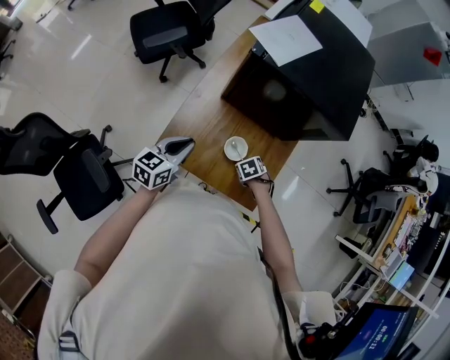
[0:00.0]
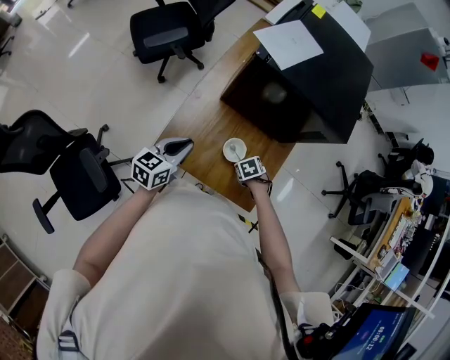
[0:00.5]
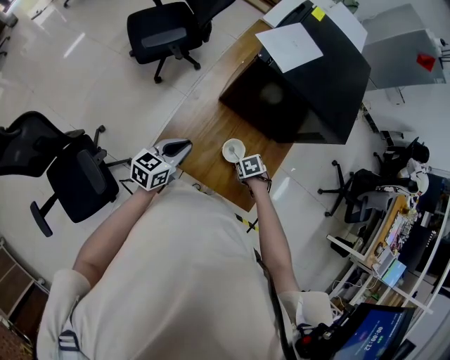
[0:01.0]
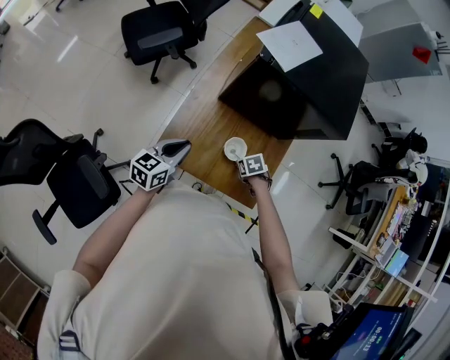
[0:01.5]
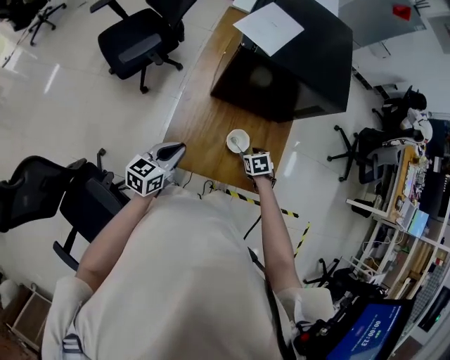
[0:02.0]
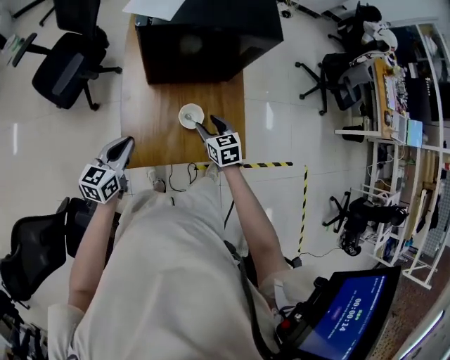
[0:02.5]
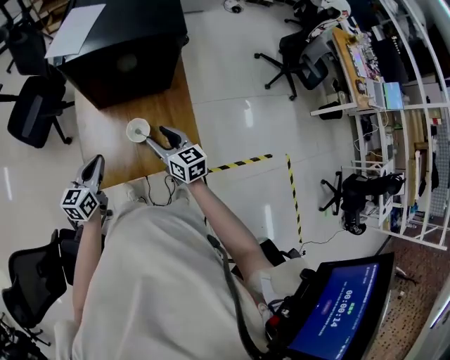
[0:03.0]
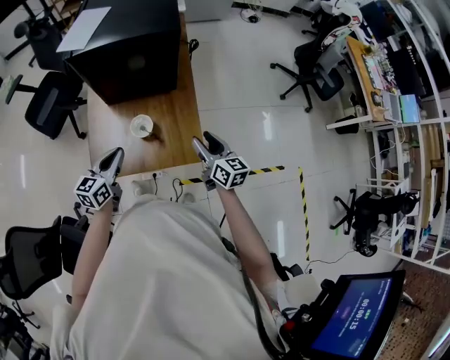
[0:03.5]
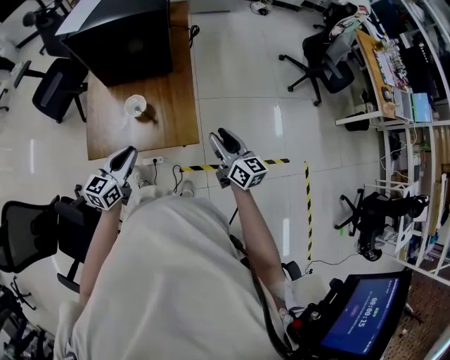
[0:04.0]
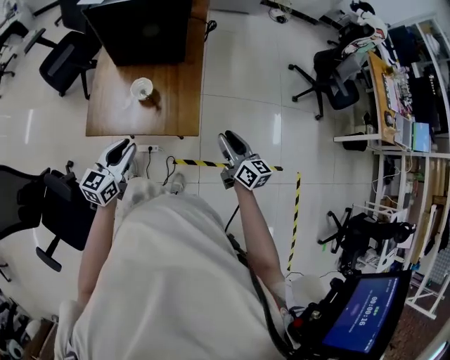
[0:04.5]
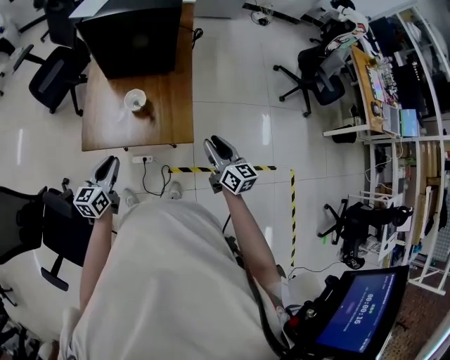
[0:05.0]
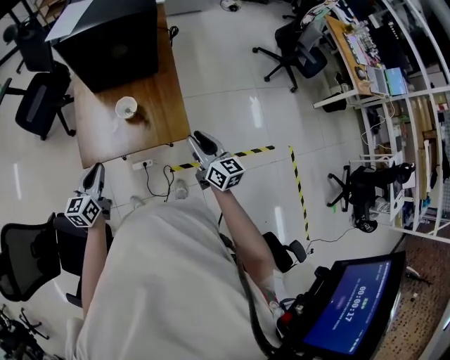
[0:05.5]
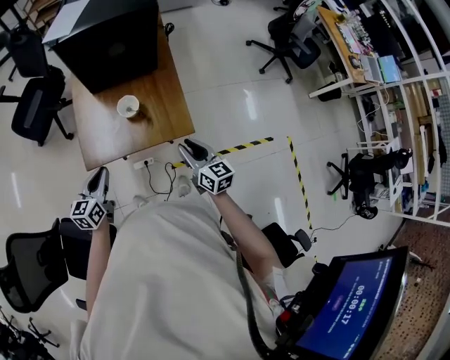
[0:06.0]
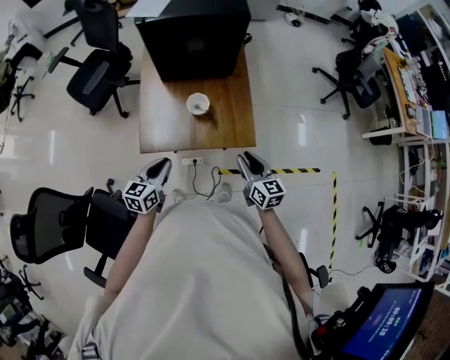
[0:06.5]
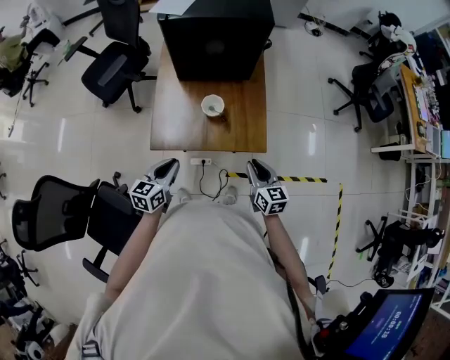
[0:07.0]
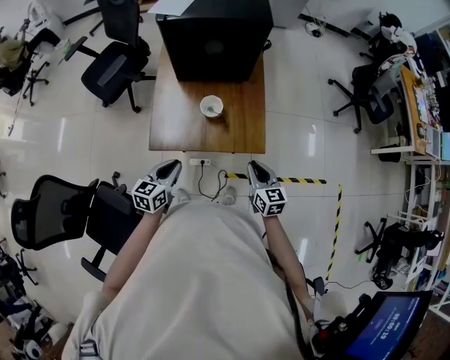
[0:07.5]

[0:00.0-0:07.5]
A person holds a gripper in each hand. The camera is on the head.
0:00.0 to 0:02.0: The right gripper turns by roughly 30 degrees, and opens; the left gripper moves some 5 cm.
0:02.0 to 0:04.0: The right gripper travels to the right, upward and backward by some 35 cm, and angles its fingers upward, by roughly 60 degrees. The left gripper travels to the right by some 25 cm.
0:04.0 to 0:05.5: The left gripper shifts approximately 15 cm to the left, while the right gripper heads to the left, covering approximately 10 cm.
0:05.5 to 0:07.5: The right gripper shifts approximately 10 cm downward and to the left, and changes its angle by roughly 20 degrees.

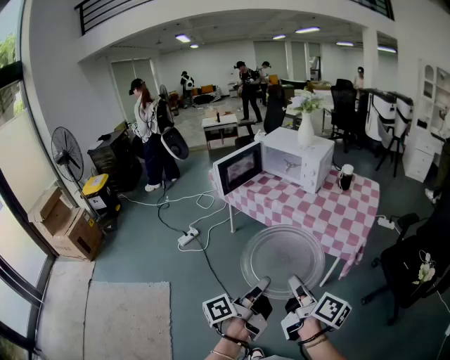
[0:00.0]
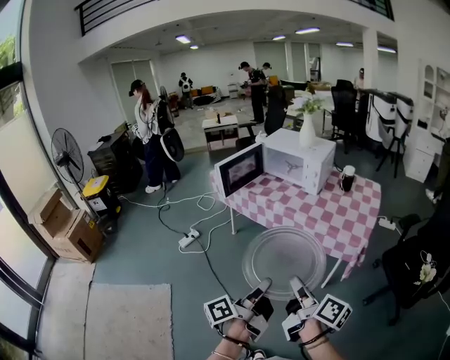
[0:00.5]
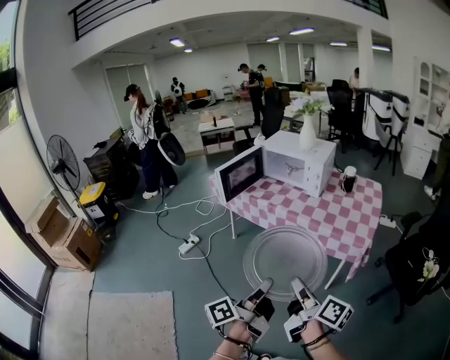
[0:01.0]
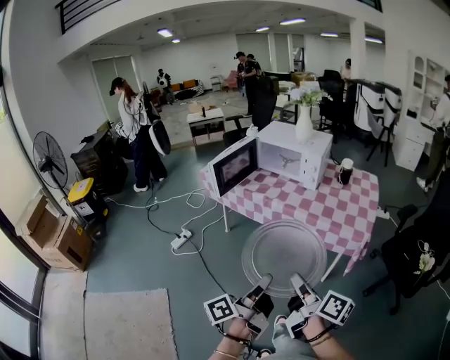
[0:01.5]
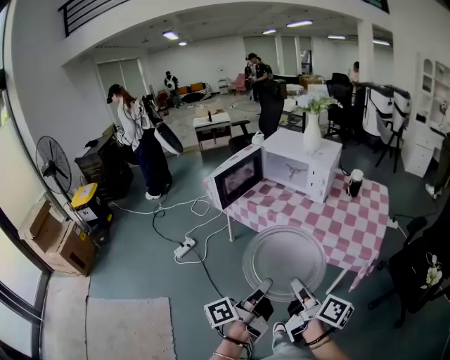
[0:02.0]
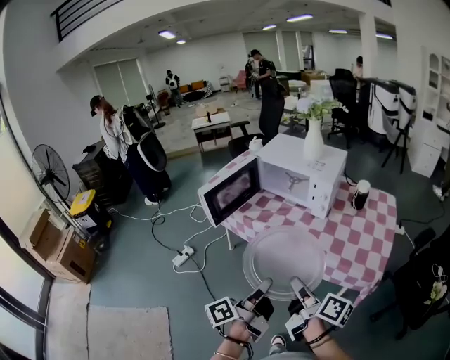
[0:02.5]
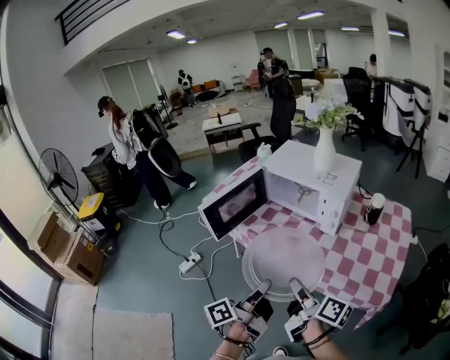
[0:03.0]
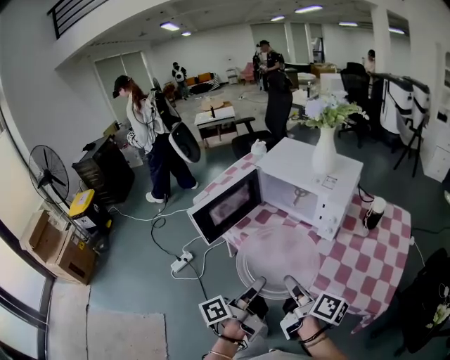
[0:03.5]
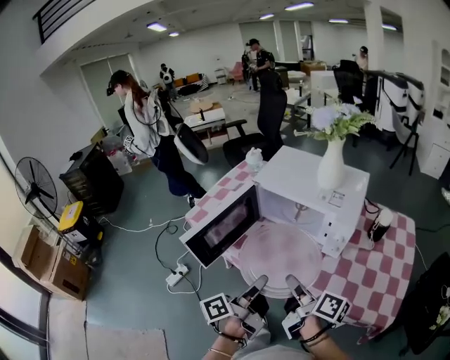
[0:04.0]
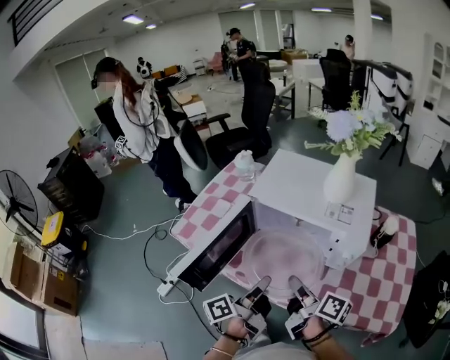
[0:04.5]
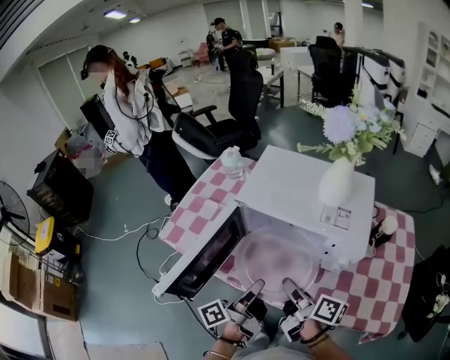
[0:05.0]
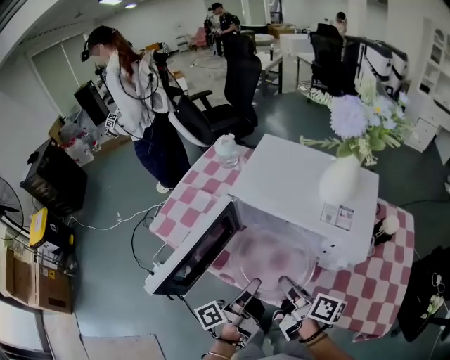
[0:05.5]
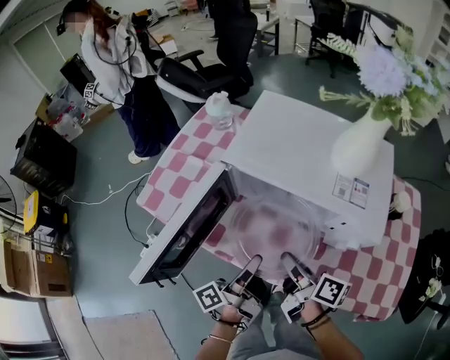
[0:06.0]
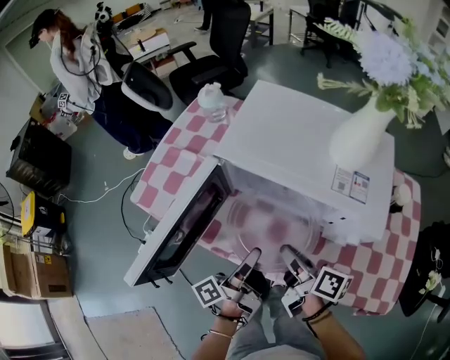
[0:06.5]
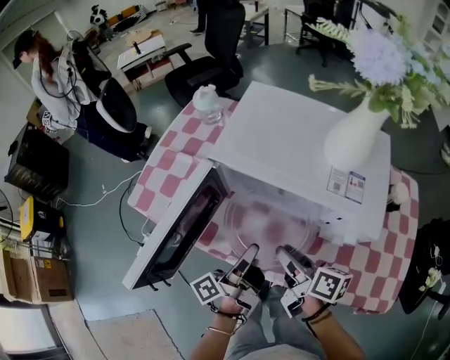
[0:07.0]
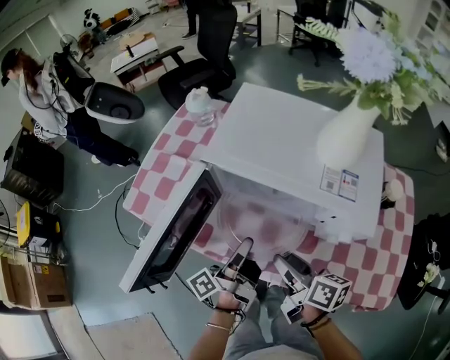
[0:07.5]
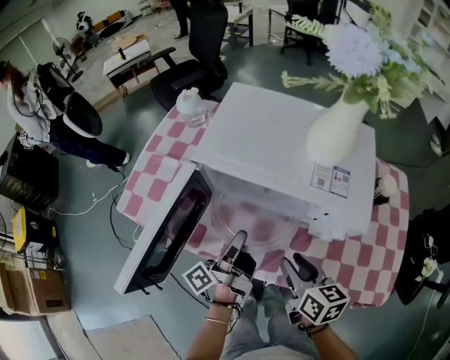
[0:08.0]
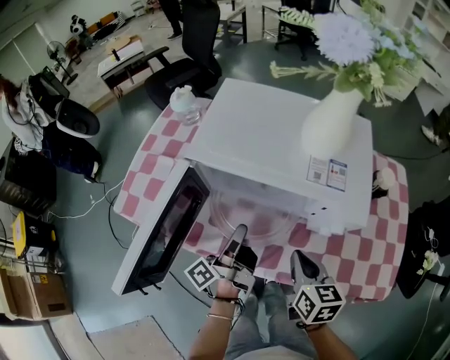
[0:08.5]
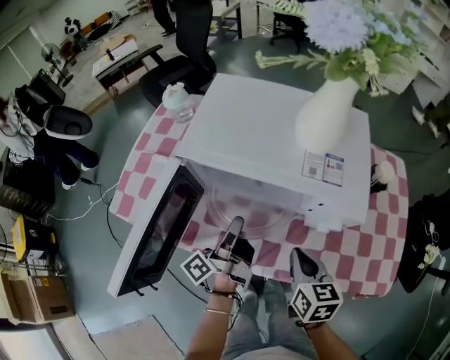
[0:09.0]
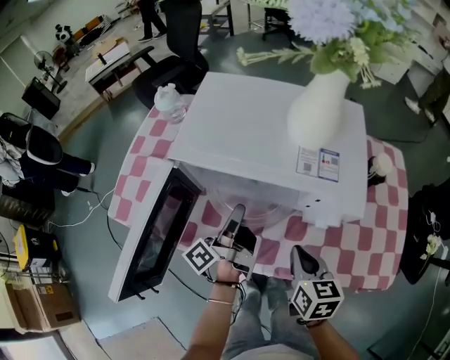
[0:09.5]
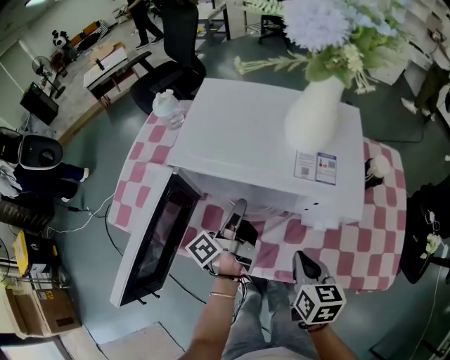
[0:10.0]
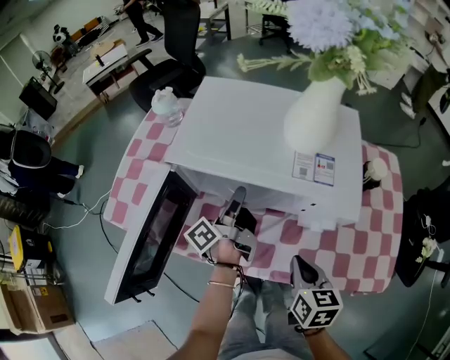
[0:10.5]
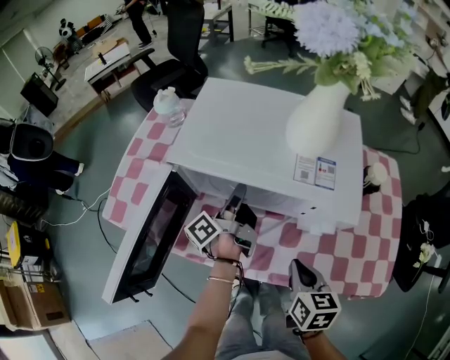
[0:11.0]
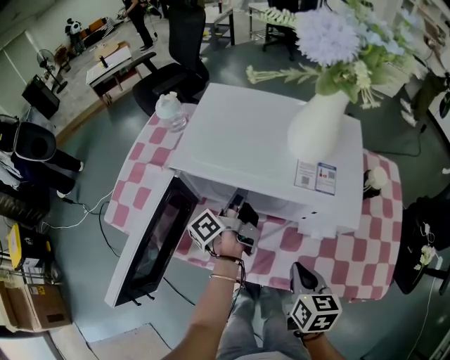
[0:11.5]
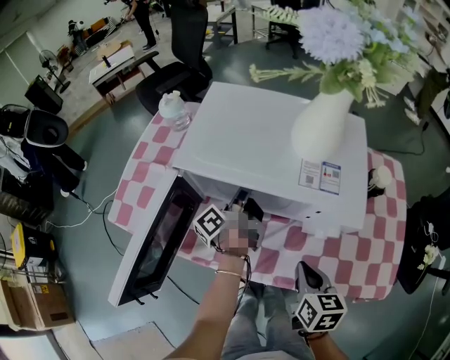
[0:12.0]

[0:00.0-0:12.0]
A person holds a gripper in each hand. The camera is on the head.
0:00.0 to 0:02.0: The right gripper ends up some 15 cm from where it was.
0:02.0 to 0:04.0: The right gripper ends up about 40 cm from where it was.
0:04.0 to 0:06.0: The right gripper ends up about 20 cm from where it was.
0:06.0 to 0:08.0: The right gripper moves about 5 cm, rotates roughly 40 degrees, and opens.
0:08.0 to 0:10.0: The right gripper closes its fingers.

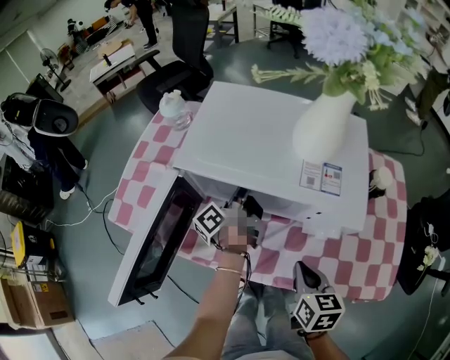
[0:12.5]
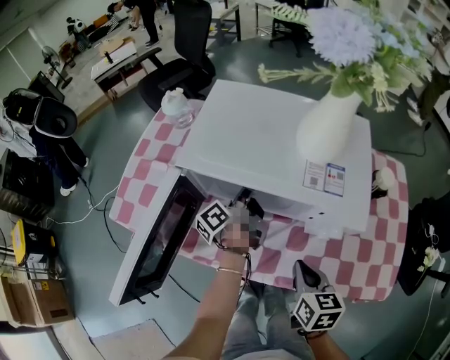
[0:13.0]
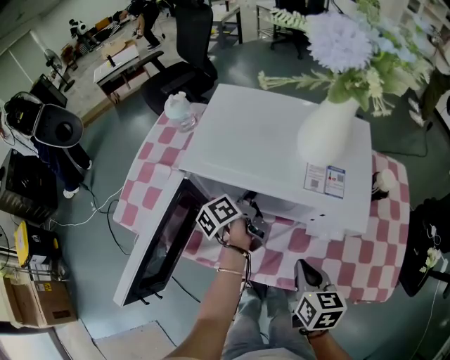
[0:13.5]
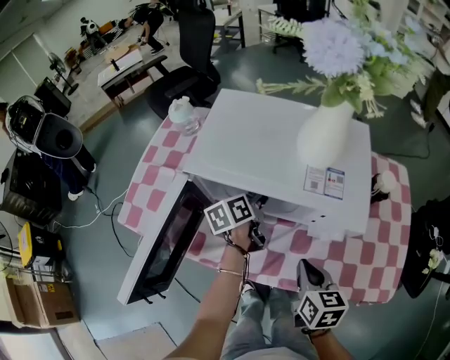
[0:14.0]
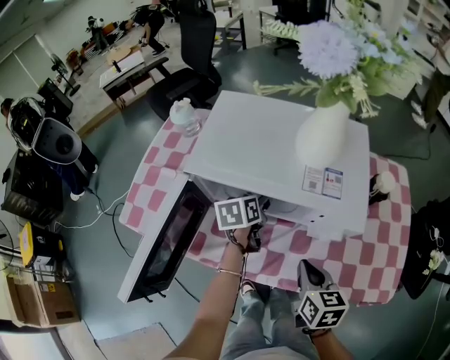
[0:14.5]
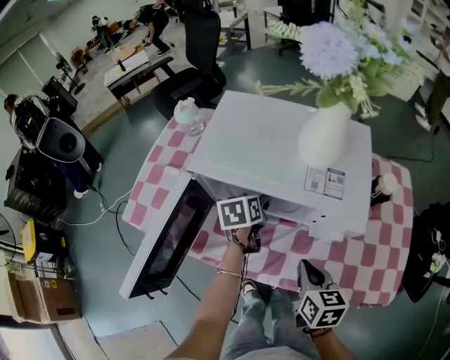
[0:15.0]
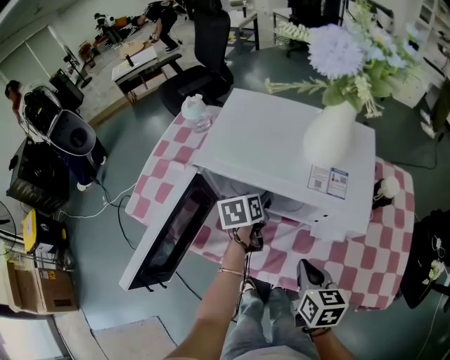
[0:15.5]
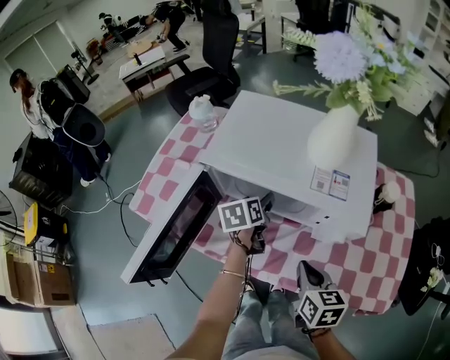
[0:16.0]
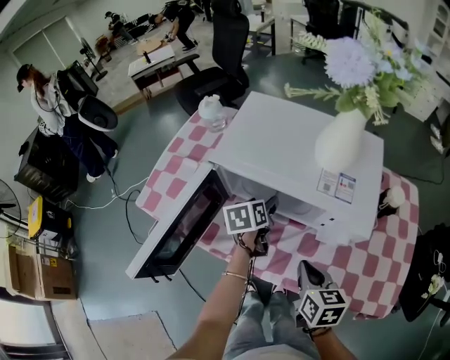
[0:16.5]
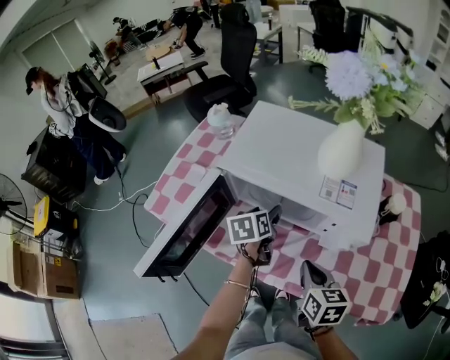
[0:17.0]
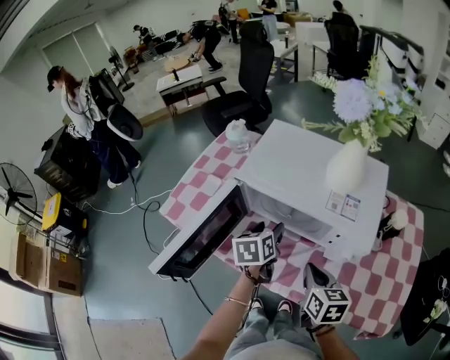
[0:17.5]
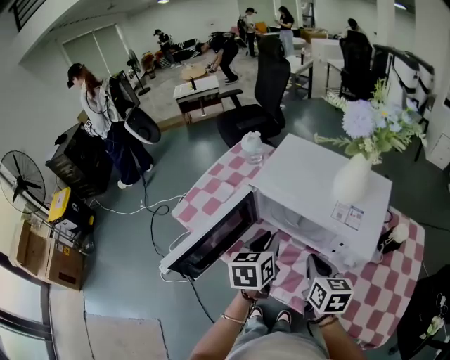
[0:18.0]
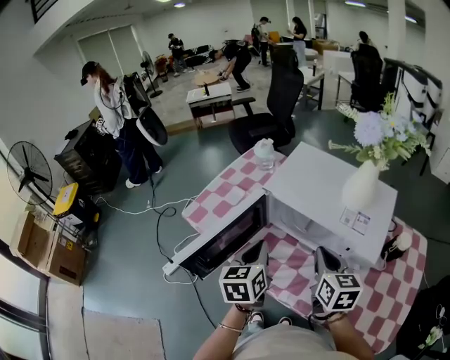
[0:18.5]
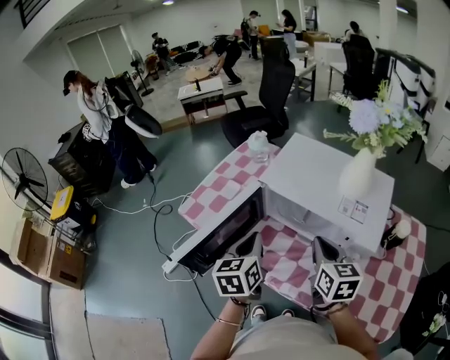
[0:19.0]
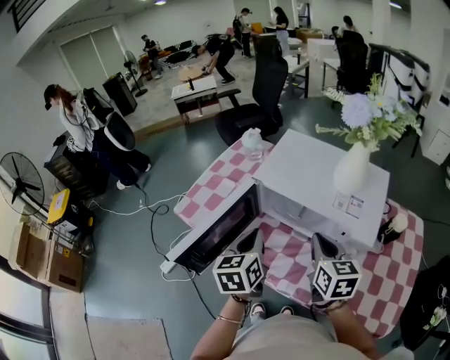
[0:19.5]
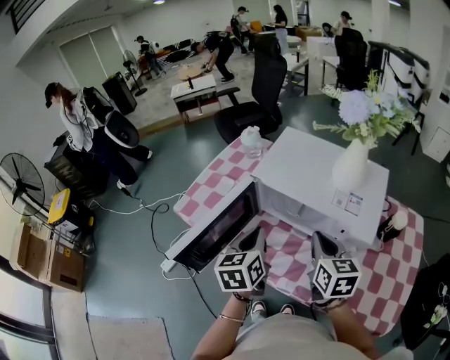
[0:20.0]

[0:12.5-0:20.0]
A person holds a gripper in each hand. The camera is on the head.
0:16.5 to 0:18.0: The right gripper moves upward, some 5 cm.
0:18.0 to 0:20.0: The right gripper travels upward by some 5 cm.
